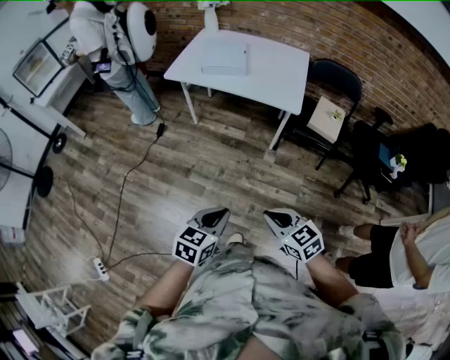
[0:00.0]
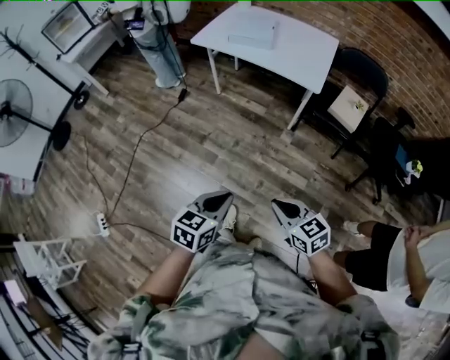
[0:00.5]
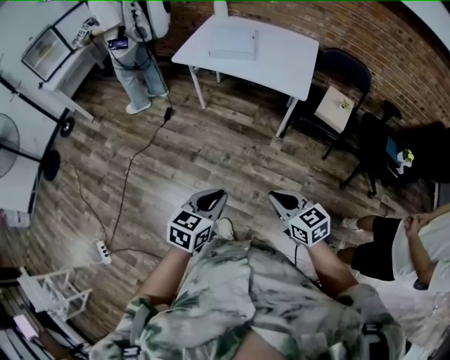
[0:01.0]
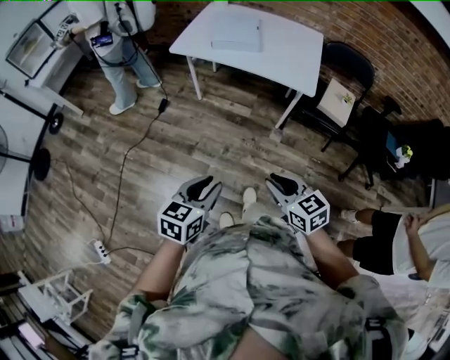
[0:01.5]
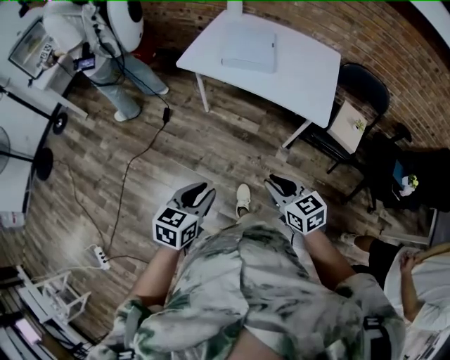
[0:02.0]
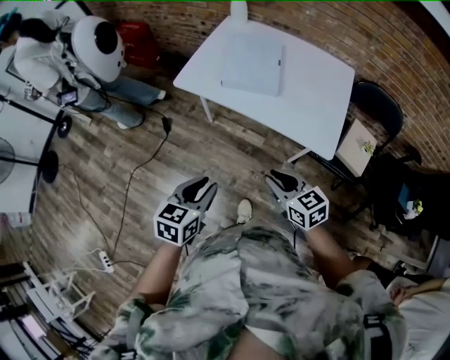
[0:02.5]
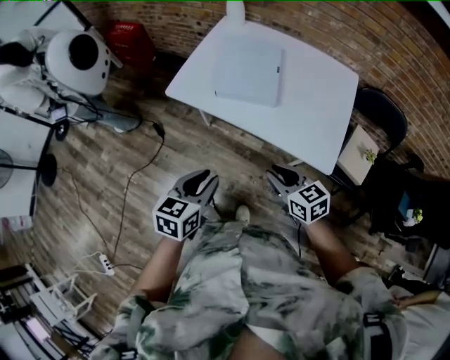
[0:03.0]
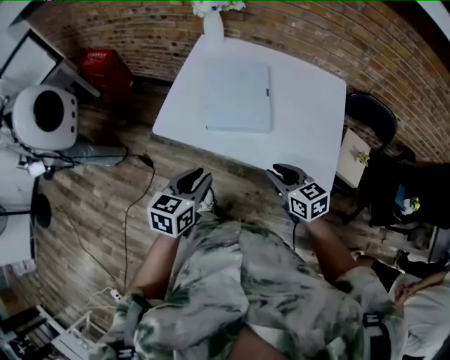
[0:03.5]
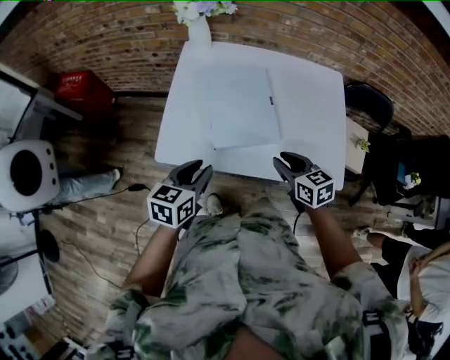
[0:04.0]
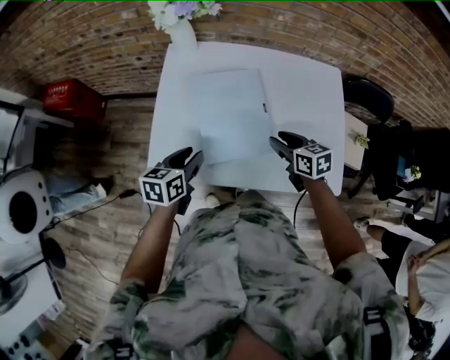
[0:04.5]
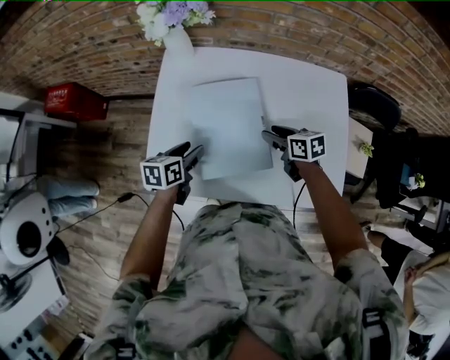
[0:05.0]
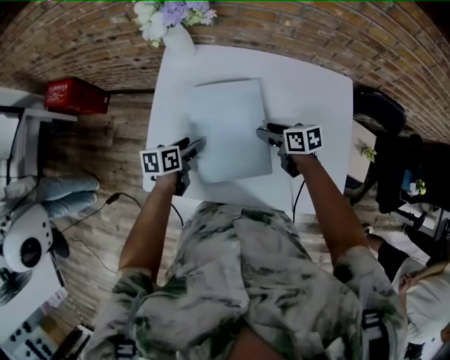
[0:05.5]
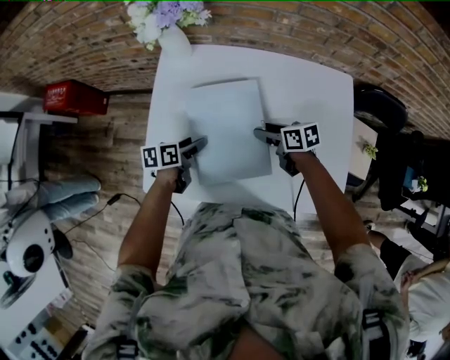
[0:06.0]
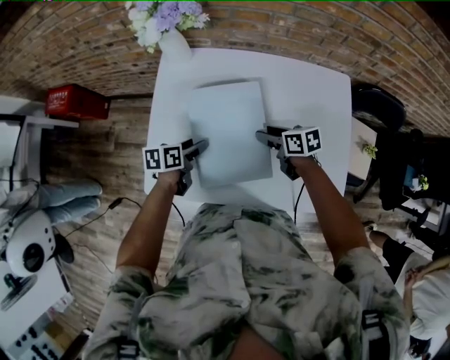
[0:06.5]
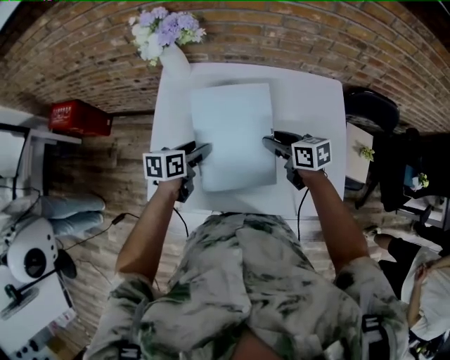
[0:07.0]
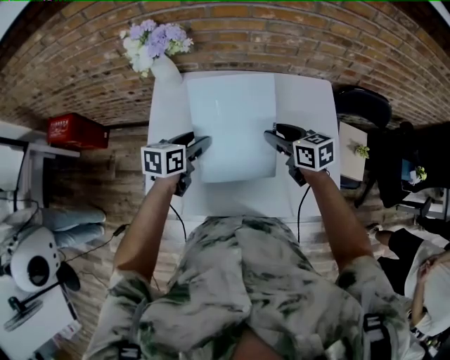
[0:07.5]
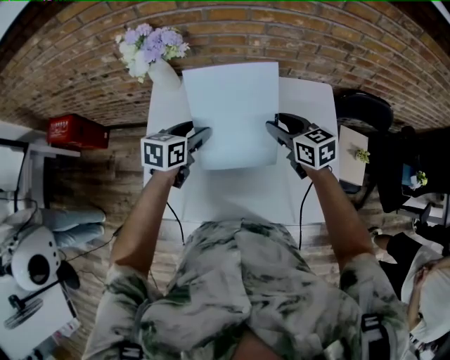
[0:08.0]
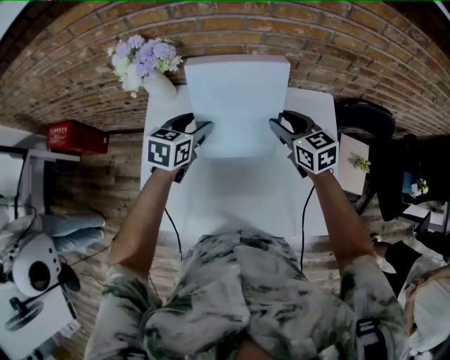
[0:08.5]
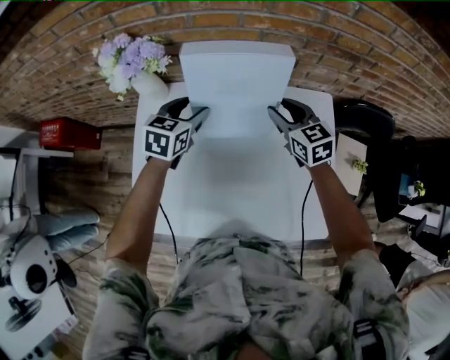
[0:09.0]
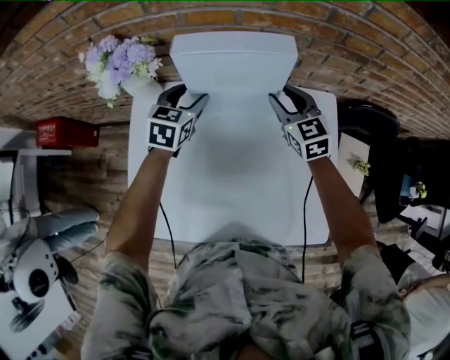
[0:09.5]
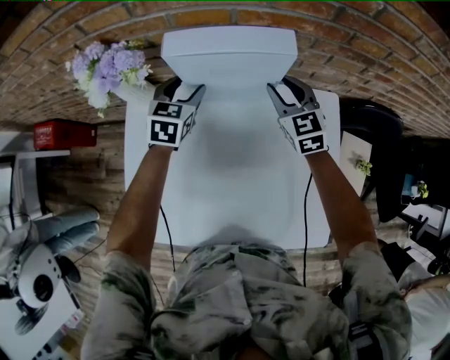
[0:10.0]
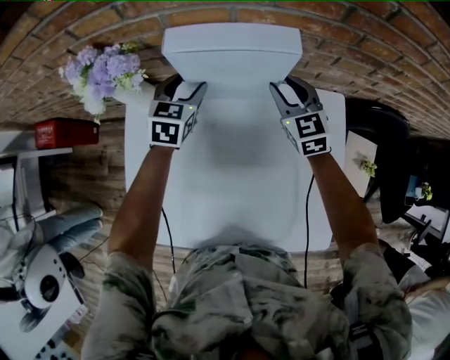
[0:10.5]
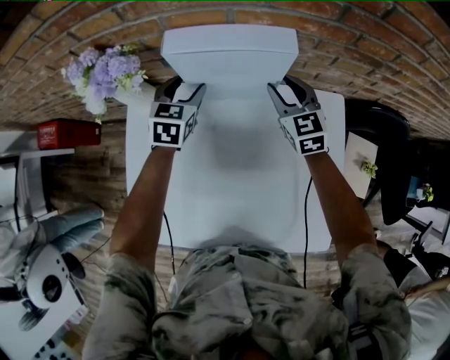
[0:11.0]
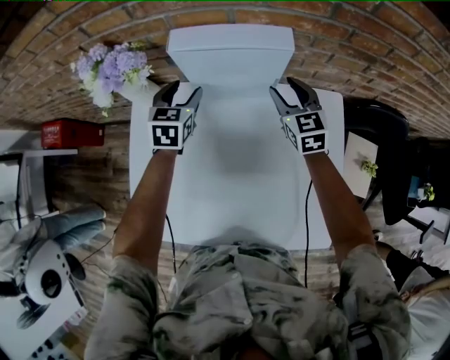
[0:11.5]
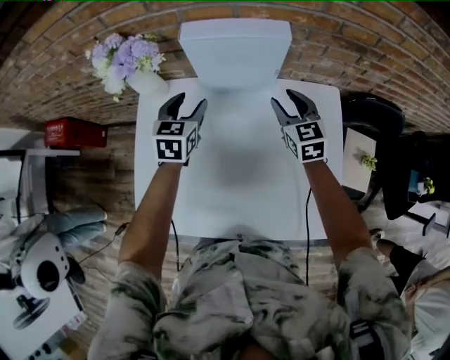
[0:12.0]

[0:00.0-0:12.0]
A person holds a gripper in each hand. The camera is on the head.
0:00.0 to 0:02.0: The left gripper goes some 20 cm forward and to the left. The right gripper shifts about 25 cm forward.
0:02.0 to 0:04.0: The two grippers travel together, forward, approximately 50 cm. The right gripper changes its angle by about 20 degrees.
0:04.0 to 0:06.0: Both grippers travel together forward and downward, roughly 30 cm. The right gripper changes its angle by roughly 30 degrees, and opens. Meanwhile the left gripper changes its angle by about 30 degrees, and opens.
0:06.0 to 0:08.0: The right gripper goes roughly 15 cm upward and to the right, and changes its angle by roughly 30 degrees, while the left gripper goes roughly 20 cm upward, forward and to the right, and changes its angle by approximately 30 degrees.
0:08.0 to 0:10.0: Both grippers travel together forward, about 25 cm. The right gripper changes its angle by about 30 degrees. The left gripper rotates roughly 30 degrees.
0:10.0 to 0:12.0: Both grippers travel together backward, some 10 cm.

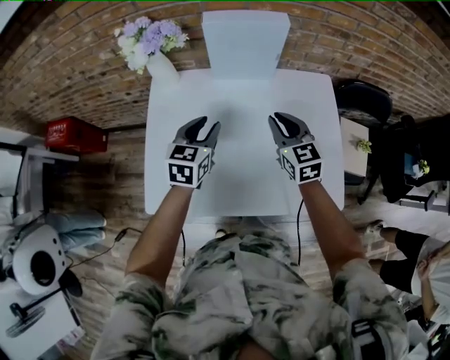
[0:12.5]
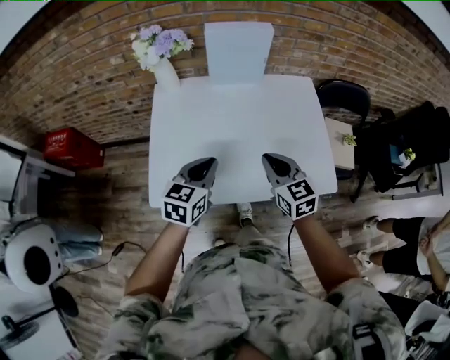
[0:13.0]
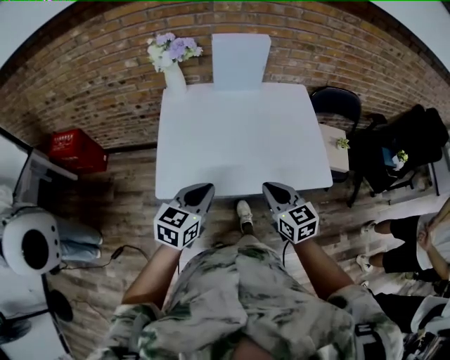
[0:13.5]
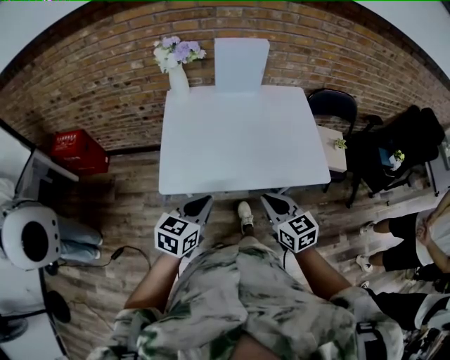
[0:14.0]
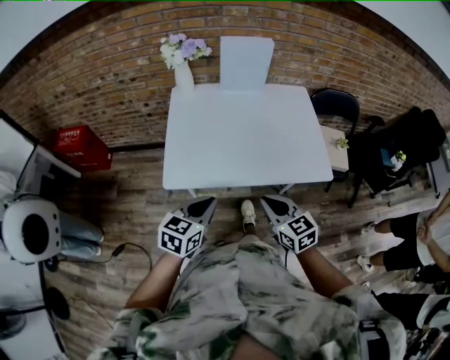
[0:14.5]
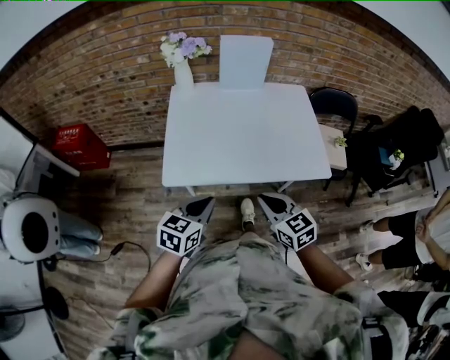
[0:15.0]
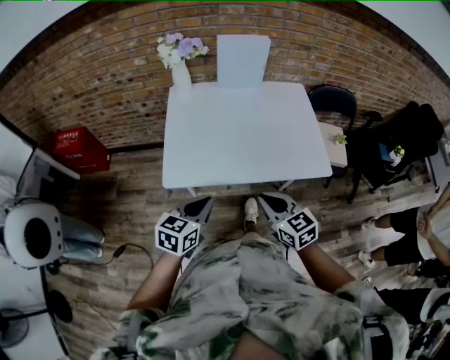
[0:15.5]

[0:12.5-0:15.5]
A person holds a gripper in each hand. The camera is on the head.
0:12.5 to 0:14.0: The pair of grippers is taken backward, approximately 40 cm. The left gripper closes.
0:14.0 to 0:15.5: The grippers stay close to where they were, moving slightly.

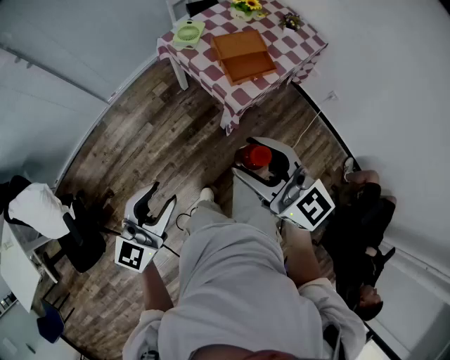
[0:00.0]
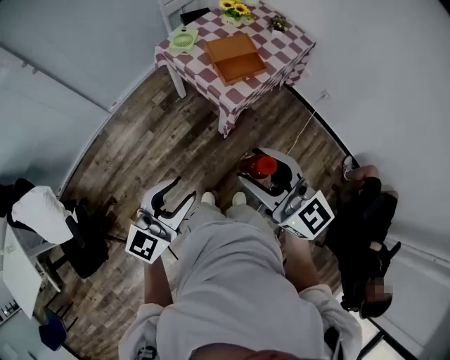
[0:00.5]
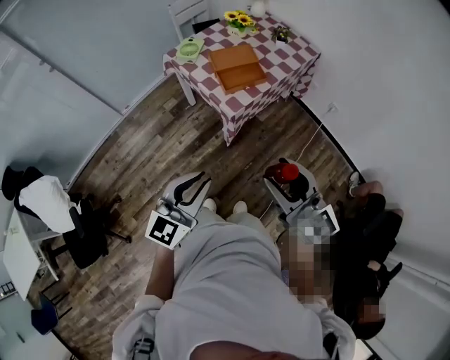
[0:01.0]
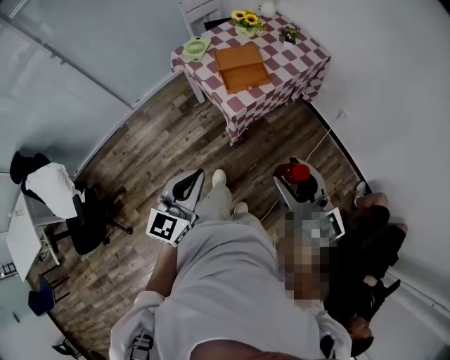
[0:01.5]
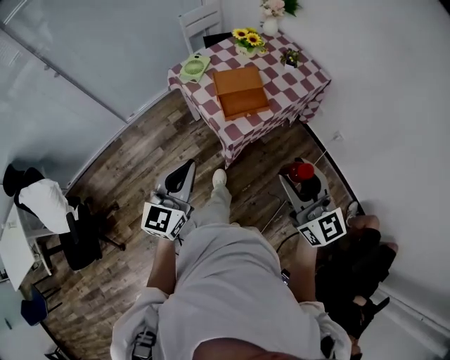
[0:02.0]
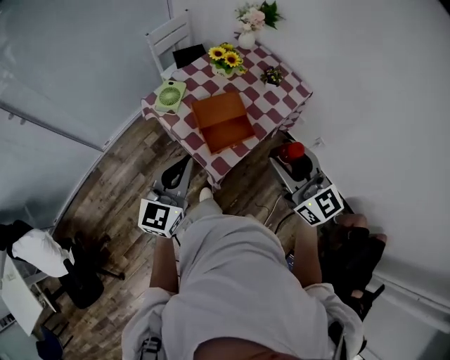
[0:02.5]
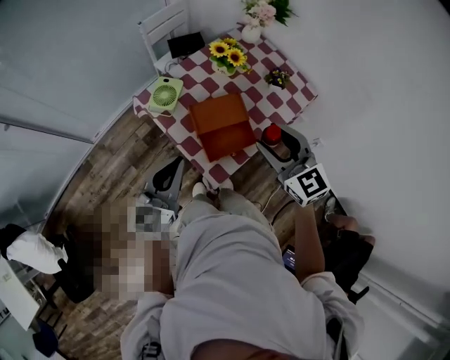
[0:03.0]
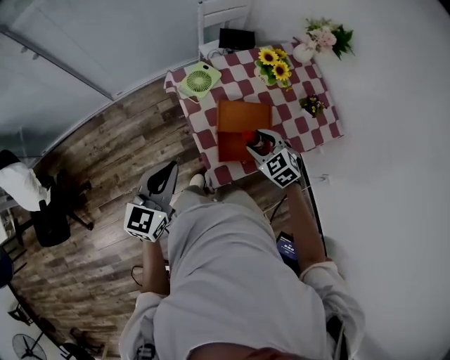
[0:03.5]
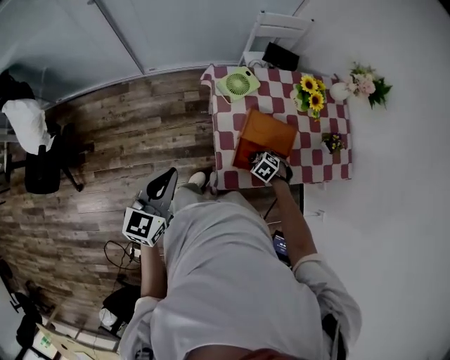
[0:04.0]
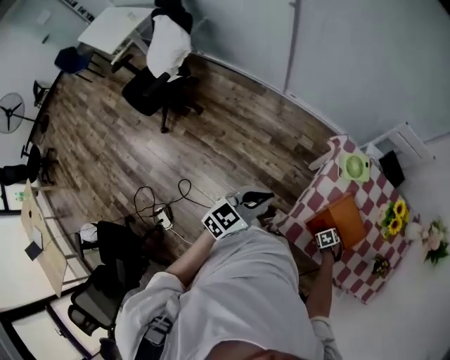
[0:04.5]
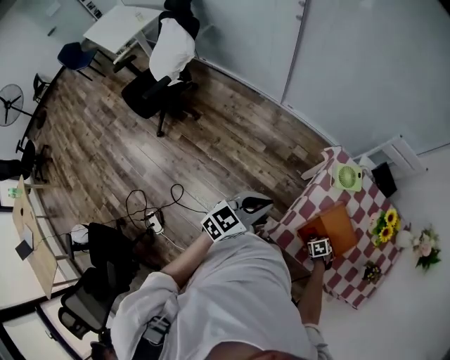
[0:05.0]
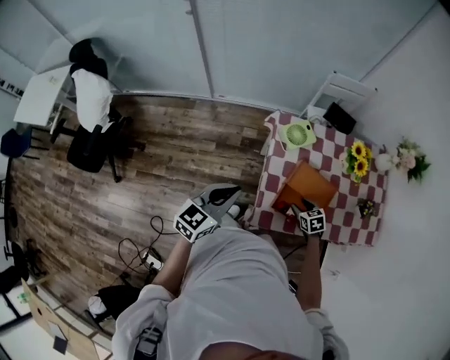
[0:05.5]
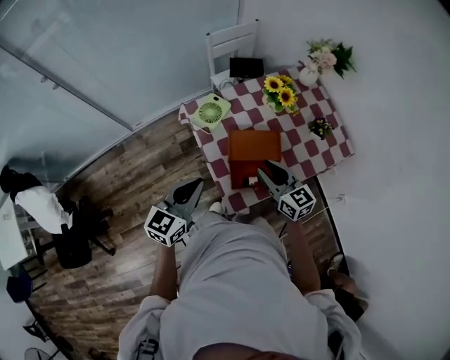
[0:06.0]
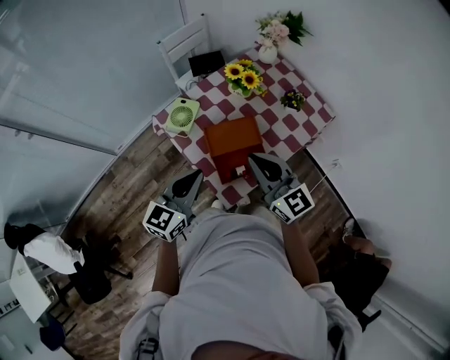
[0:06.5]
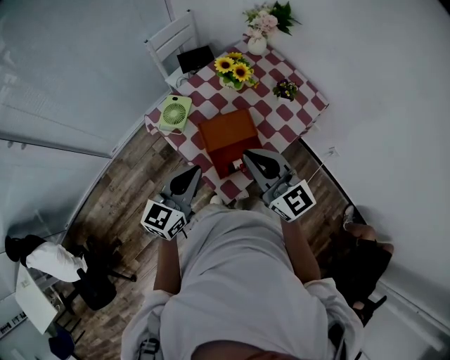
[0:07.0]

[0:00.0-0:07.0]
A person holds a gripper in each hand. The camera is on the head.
0:00.0 to 0:02.0: The left gripper travels to the right and forward by approximately 20 cm, and closes its fingers; the right gripper shifts roughly 25 cm to the right.
0:02.0 to 0:03.5: The left gripper is displaced forward by roughly 25 cm; the right gripper shifts roughly 50 cm forward and downward, and angles its fingers downward, by roughly 50 degrees.
0:03.5 to 0:05.0: The left gripper shifts by some 10 cm, and changes its angle by approximately 20 degrees, while the right gripper moves downward, about 25 cm, and tilts its fingers about 40 degrees downward.
0:05.0 to 0:07.0: The left gripper changes place by approximately 20 cm, and changes its angle by some 50 degrees, while the right gripper shifts about 40 cm upward, tilts its fingers roughly 80 degrees upward, and closes up.

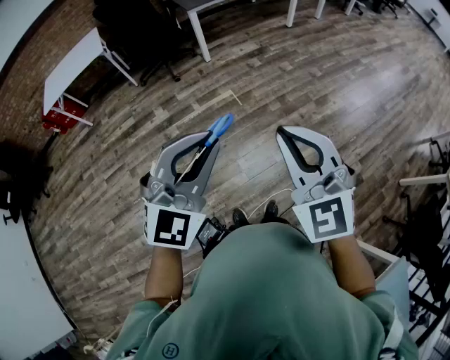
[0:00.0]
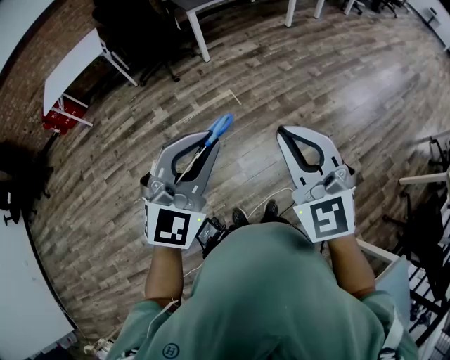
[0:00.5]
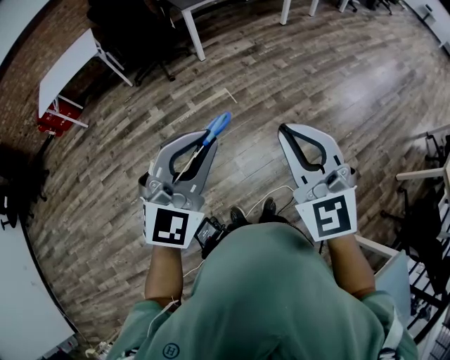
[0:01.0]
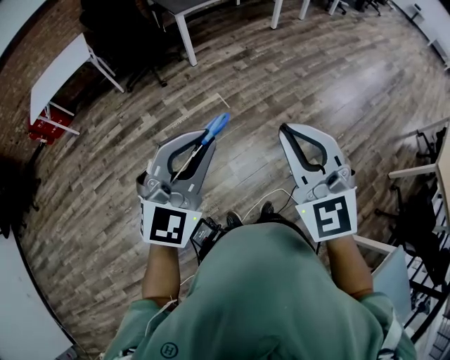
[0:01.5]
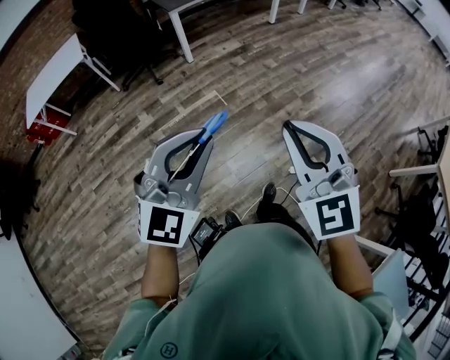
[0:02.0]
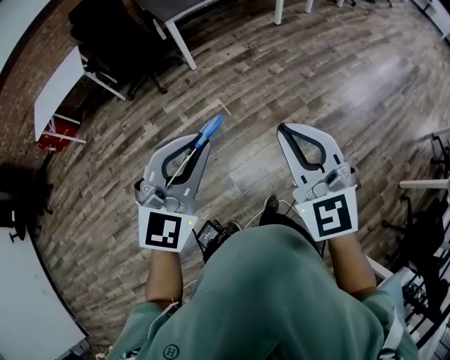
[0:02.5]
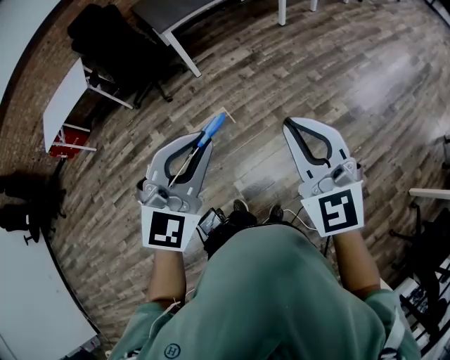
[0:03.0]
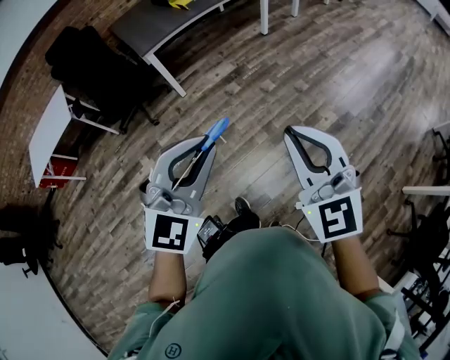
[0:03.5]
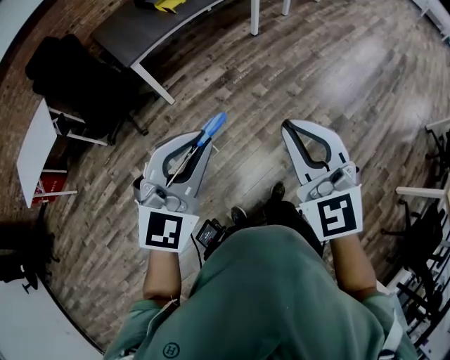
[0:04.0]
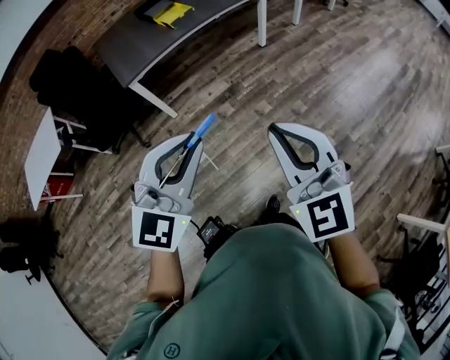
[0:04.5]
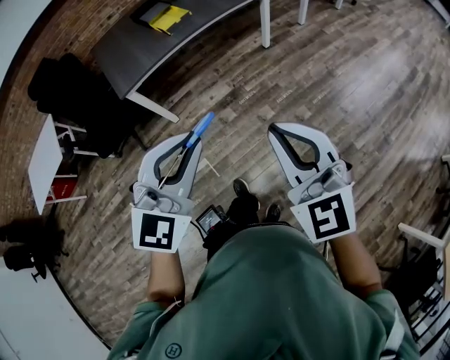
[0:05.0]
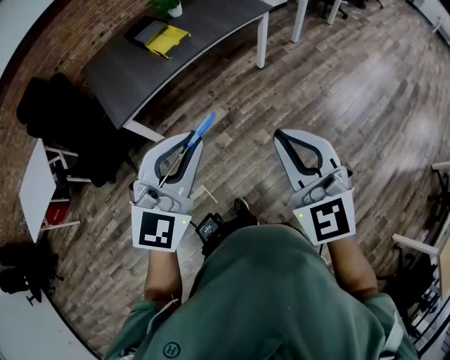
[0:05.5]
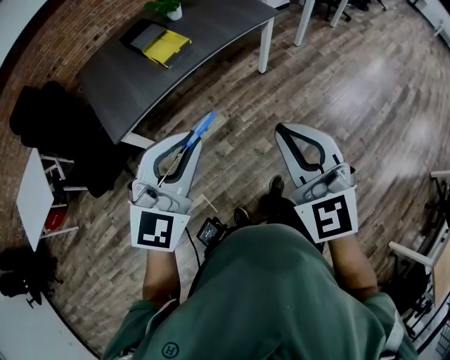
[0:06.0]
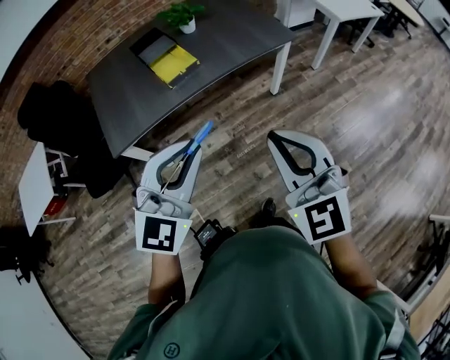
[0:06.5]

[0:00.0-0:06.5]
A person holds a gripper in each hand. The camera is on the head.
0:00.0 to 0:02.0: The grippers move only a little.
0:02.0 to 0:04.5: The pair of grippers is taken forward, approximately 60 cm.
0:04.5 to 0:06.5: The two grippers travel together, forward, roughly 40 cm.
